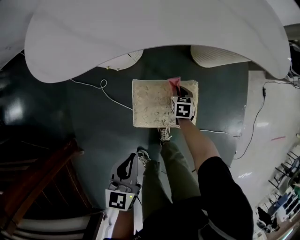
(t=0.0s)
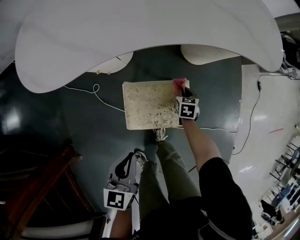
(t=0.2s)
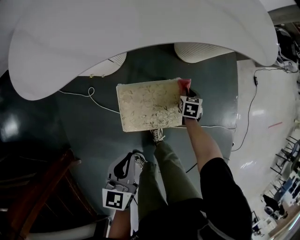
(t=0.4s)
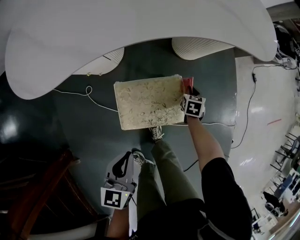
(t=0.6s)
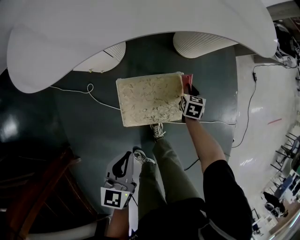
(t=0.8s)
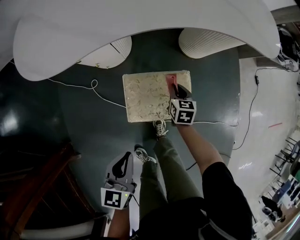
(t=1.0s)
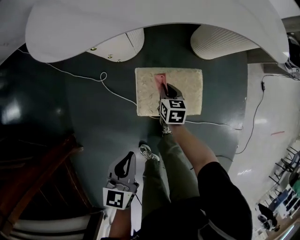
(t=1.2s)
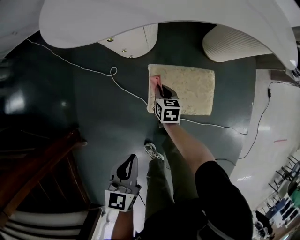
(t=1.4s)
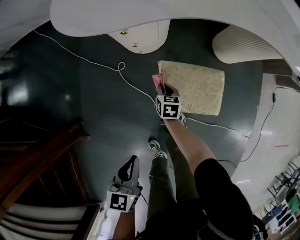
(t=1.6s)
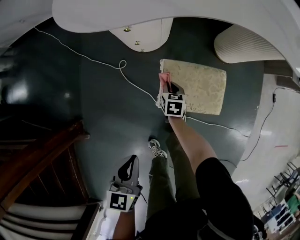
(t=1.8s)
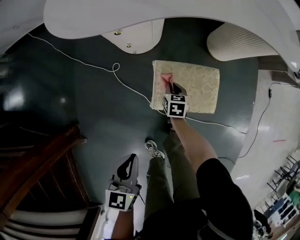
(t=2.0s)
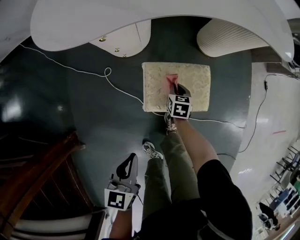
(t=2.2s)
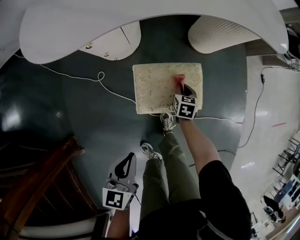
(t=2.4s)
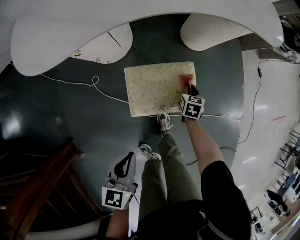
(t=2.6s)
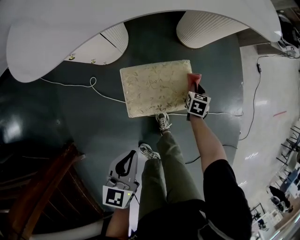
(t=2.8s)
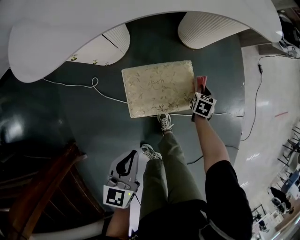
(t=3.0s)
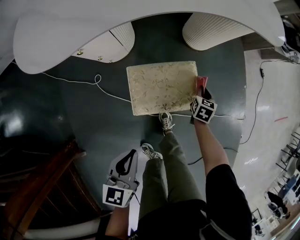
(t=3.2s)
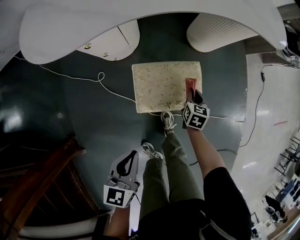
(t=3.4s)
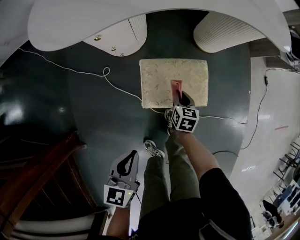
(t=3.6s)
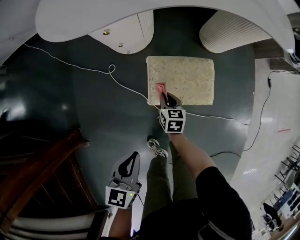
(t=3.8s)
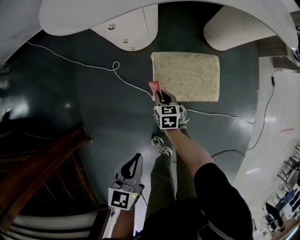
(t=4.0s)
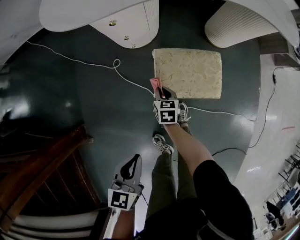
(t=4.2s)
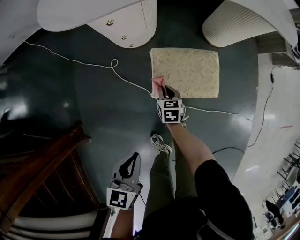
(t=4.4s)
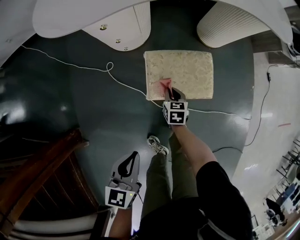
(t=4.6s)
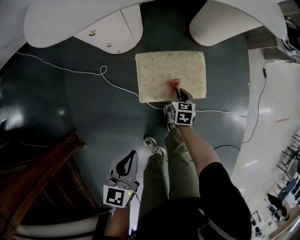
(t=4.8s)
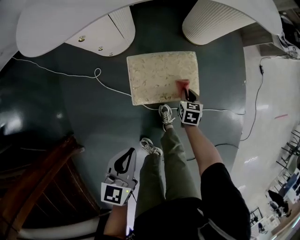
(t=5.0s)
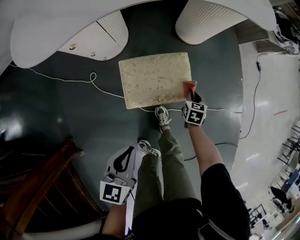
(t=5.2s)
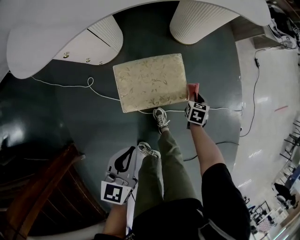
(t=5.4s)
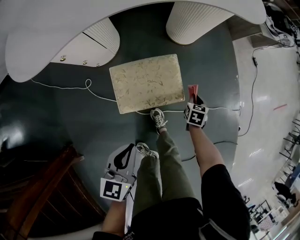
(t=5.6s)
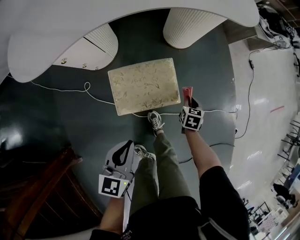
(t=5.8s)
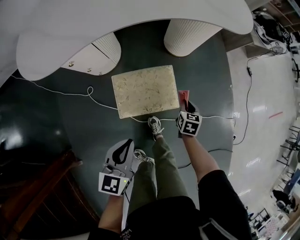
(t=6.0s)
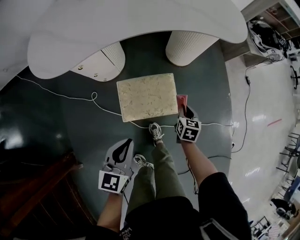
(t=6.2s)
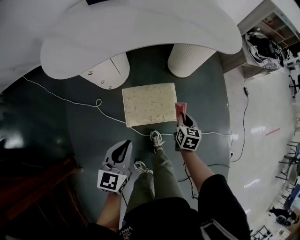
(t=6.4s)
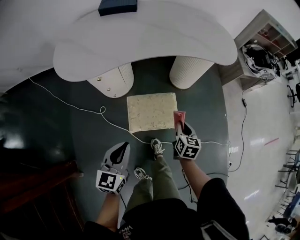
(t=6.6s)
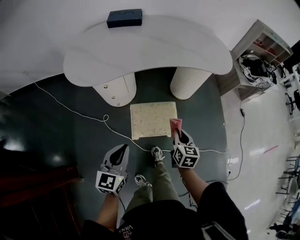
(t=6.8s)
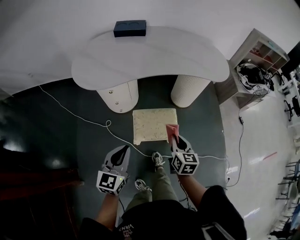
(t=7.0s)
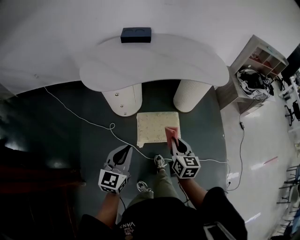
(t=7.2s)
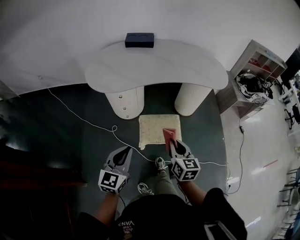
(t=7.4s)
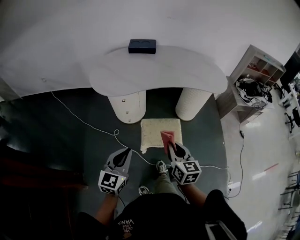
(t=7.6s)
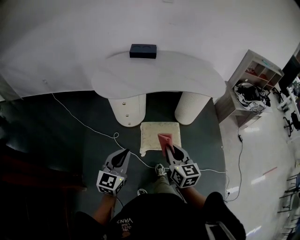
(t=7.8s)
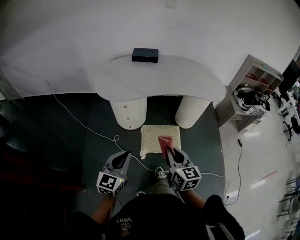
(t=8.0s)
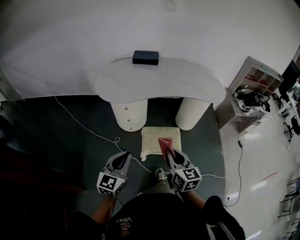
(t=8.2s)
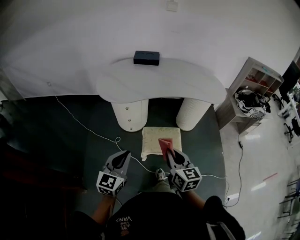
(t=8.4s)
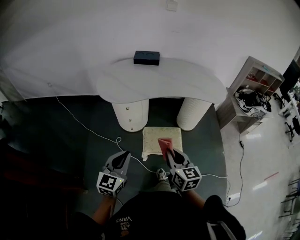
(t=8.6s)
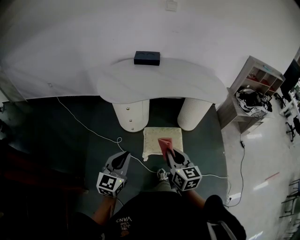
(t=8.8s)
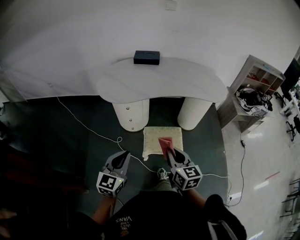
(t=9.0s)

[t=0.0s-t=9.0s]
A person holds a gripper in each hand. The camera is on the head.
t=0.0s to t=1.6s: The left gripper shifts by approximately 15 cm. The right gripper moves roughly 25 cm.
t=1.6s to t=3.0s: The left gripper moves approximately 10 cm; the right gripper moves approximately 40 cm, and rotates about 40 degrees.
t=3.0s to t=4.4s: The right gripper moves some 35 cm, and changes its angle by about 30 degrees, while the left gripper shifts by some 15 cm.
t=4.4s to t=6.0s: The left gripper moves approximately 20 cm; the right gripper changes place by approximately 35 cm, and swivels some 20 degrees.
t=6.0s to t=7.6s: The left gripper moves upward, backward and to the left, roughly 30 cm, and swivels some 20 degrees. The right gripper is displaced upward, backward and to the left by roughly 50 cm, and points its fingers about 30 degrees further upward.
t=7.6s to t=9.0s: The right gripper changes place by approximately 5 cm.

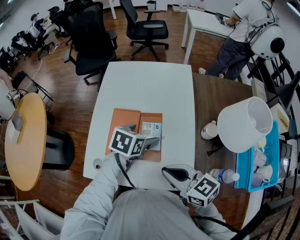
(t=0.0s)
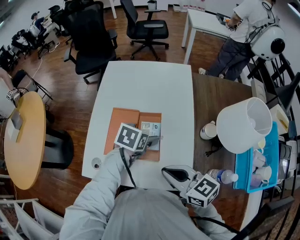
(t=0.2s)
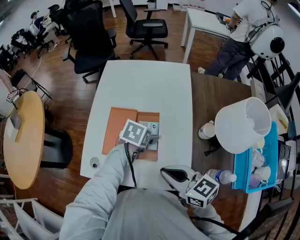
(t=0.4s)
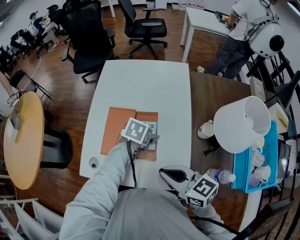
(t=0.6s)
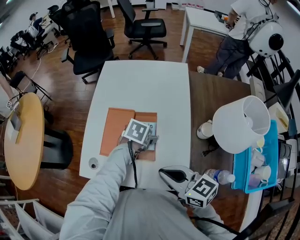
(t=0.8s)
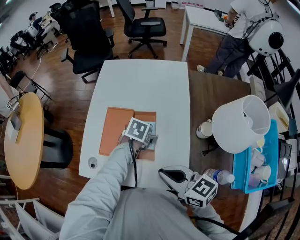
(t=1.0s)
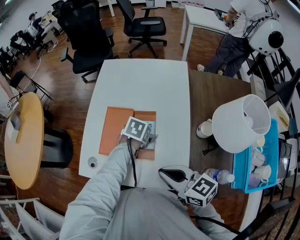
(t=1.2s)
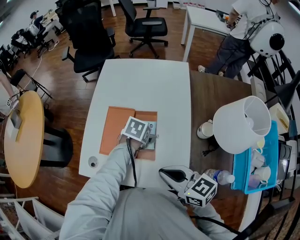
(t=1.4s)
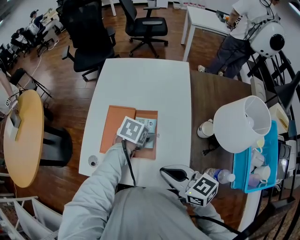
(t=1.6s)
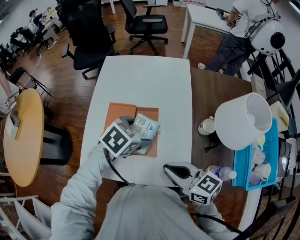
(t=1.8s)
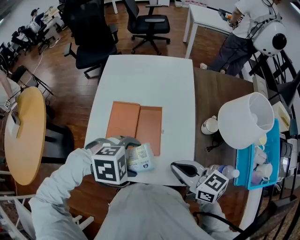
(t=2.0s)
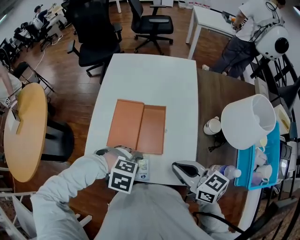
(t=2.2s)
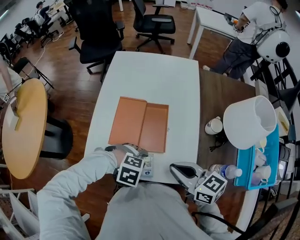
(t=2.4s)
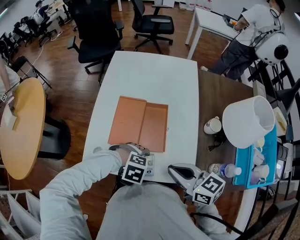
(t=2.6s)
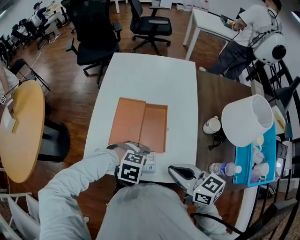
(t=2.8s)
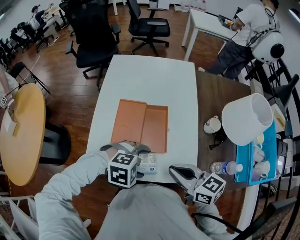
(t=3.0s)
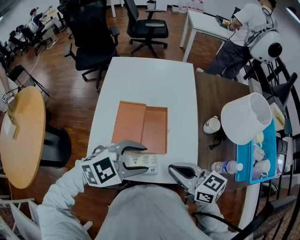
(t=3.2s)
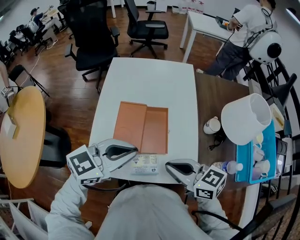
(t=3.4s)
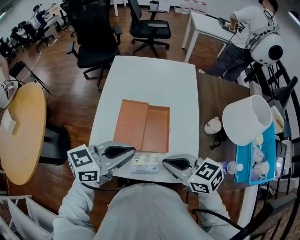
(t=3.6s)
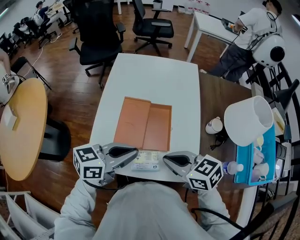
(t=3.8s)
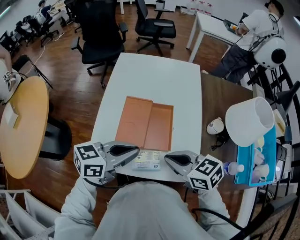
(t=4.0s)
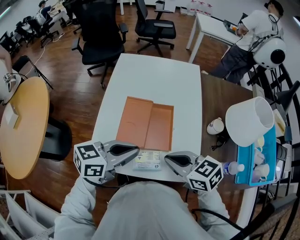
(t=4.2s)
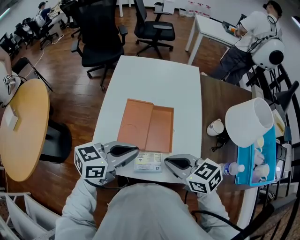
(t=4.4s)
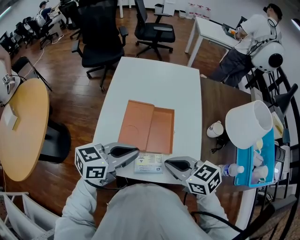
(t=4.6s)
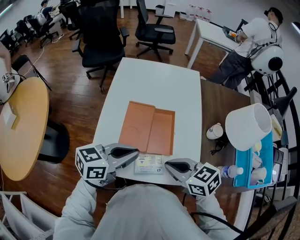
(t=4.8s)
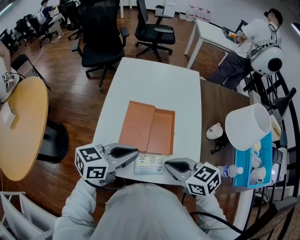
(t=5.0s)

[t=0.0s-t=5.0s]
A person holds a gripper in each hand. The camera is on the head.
t=0.0s to t=1.6s: The left gripper heads downward, covering some 5 cm.
t=1.6s to t=3.4s: The left gripper goes up and down, roughly 25 cm each way, reversing 2 times, tips its fingers upward by approximately 50 degrees, and closes. Meanwhile the right gripper shifts by some 5 cm.
t=3.4s to t=5.0s: The left gripper ends up approximately 5 cm from where it was, and swivels approximately 20 degrees.

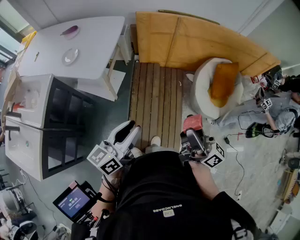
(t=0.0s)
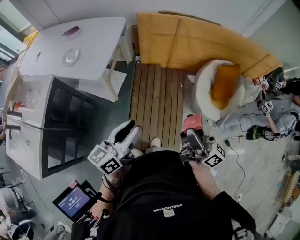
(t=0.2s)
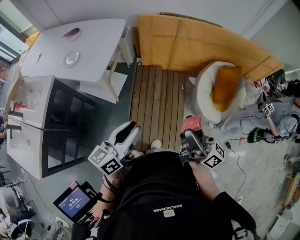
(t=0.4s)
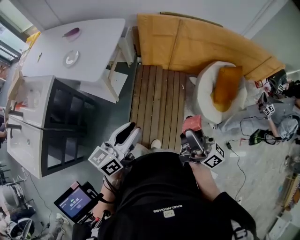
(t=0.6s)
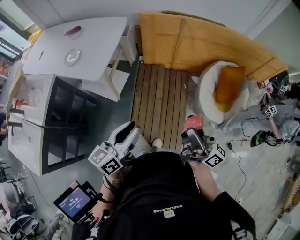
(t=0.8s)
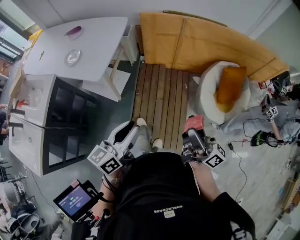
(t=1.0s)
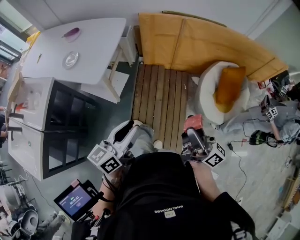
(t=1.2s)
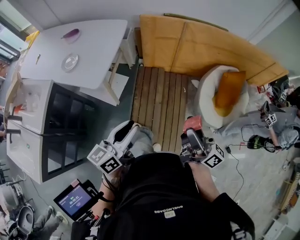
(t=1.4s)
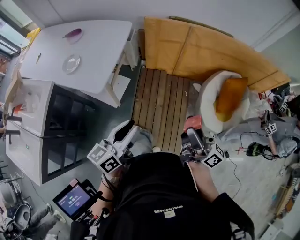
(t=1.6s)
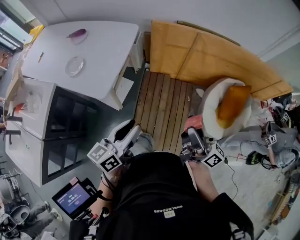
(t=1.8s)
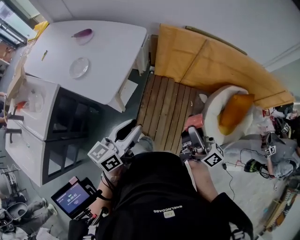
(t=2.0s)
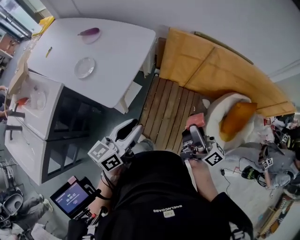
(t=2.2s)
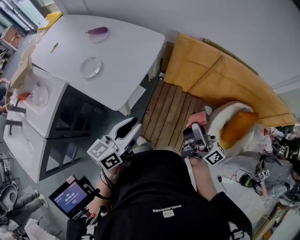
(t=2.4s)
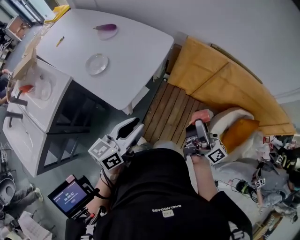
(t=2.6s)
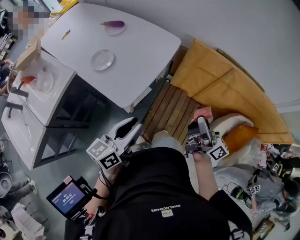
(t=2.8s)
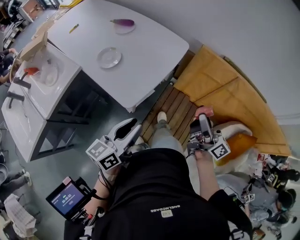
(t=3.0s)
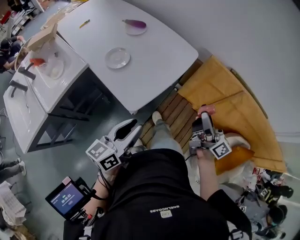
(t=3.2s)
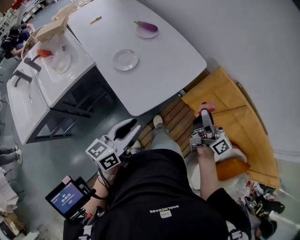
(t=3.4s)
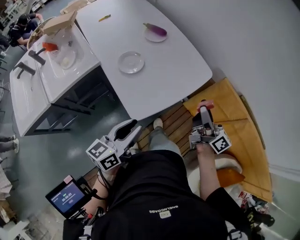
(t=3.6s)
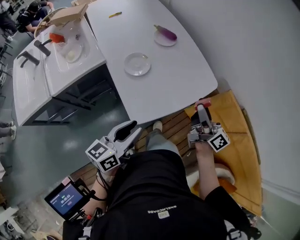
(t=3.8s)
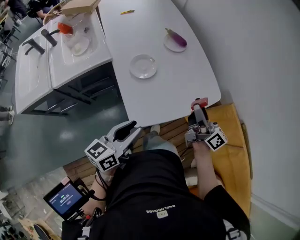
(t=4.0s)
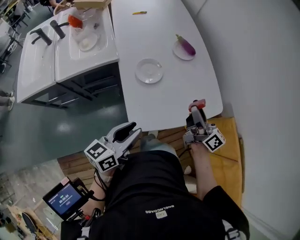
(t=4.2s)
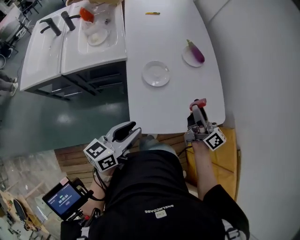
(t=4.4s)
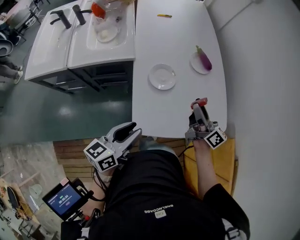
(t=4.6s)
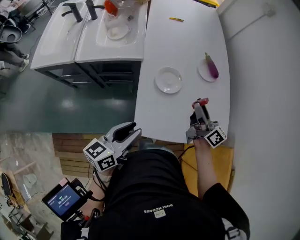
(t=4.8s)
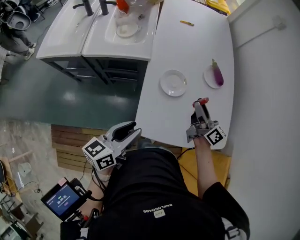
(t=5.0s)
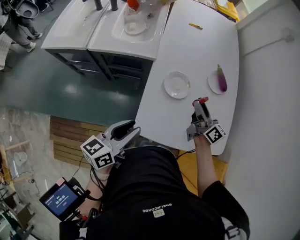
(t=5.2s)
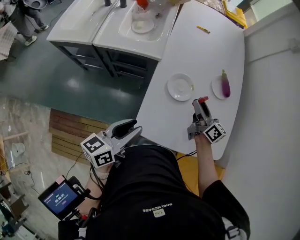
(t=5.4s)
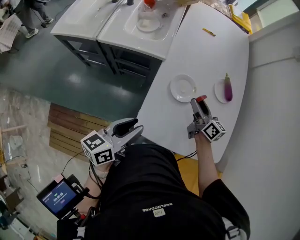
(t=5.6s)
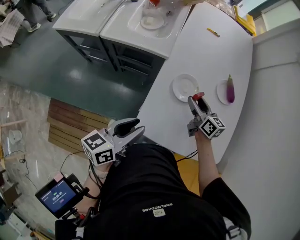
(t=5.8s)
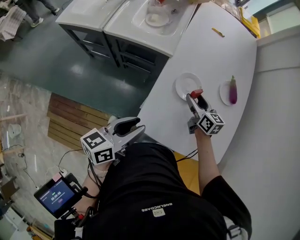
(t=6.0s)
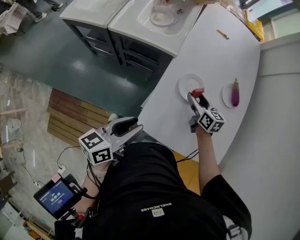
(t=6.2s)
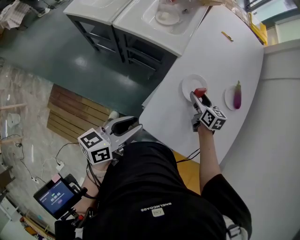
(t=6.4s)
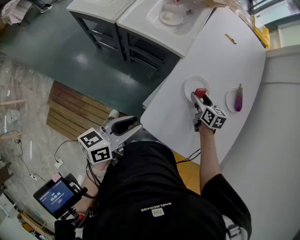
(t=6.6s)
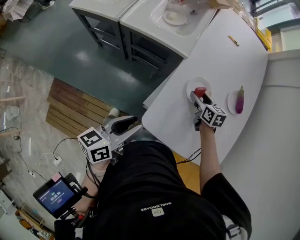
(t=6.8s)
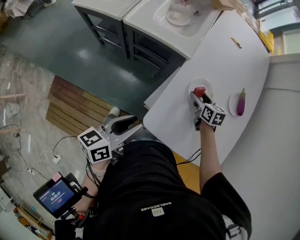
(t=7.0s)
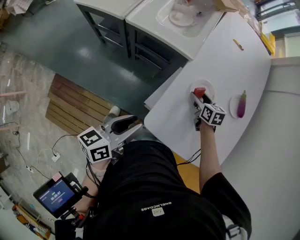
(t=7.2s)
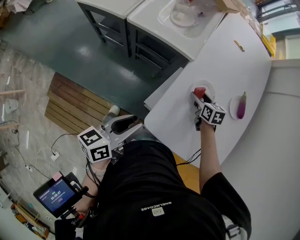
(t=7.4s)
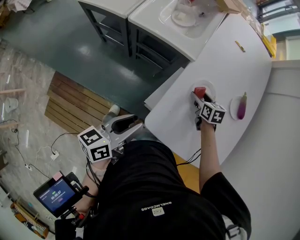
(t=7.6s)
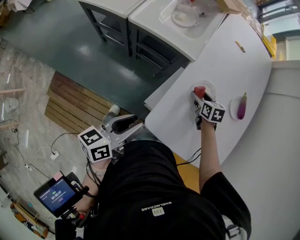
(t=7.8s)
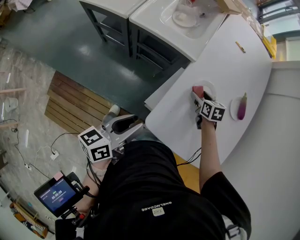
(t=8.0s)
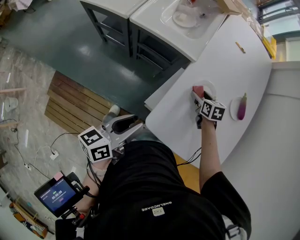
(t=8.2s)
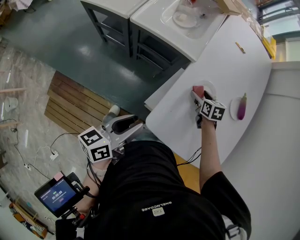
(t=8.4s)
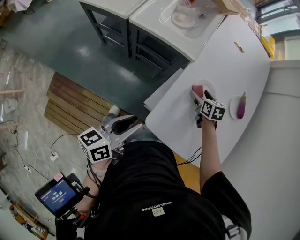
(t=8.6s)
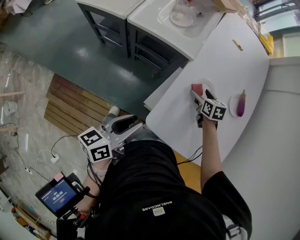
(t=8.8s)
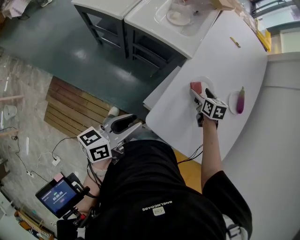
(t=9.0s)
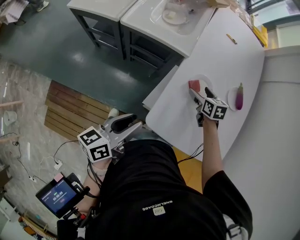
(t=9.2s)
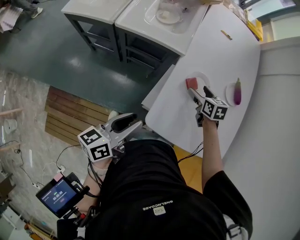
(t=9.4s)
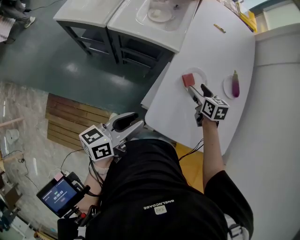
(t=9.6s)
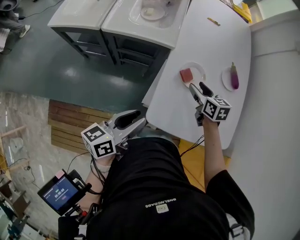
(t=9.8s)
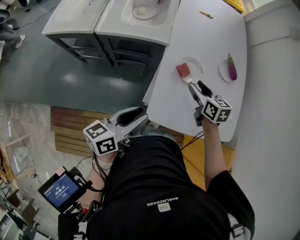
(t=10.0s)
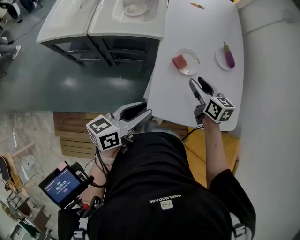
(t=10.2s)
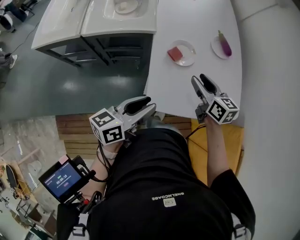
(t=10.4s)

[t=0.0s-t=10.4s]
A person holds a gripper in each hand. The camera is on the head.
t=0.0s to t=1.4s: Both grippers travel together forward, some 10 cm.
t=1.4s to t=3.0s: The two grippers go approximately 30 cm forward and to the left. The left gripper rotates approximately 20 degrees.
t=3.0s to t=4.4s: The left gripper changes place by approximately 15 cm, and turns by approximately 40 degrees; the right gripper changes place by approximately 35 cm, and turns by roughly 40 degrees.
t=4.4s to t=6.0s: The left gripper turns by approximately 20 degrees. Meanwhile the right gripper changes place by about 20 cm, and rotates some 50 degrees.
t=6.0s to t=7.4s: The right gripper goes about 10 cm downward, and changes its angle by about 30 degrees. Meanwhile the left gripper is displaced to the left by roughly 5 cm.
t=7.4s to t=9.0s: The grippers make only small movements.
t=9.0s to t=10.4s: The left gripper shifts approximately 5 cm to the right, and rotates about 30 degrees; the right gripper is displaced upward and backward by roughly 20 cm, swivels approximately 30 degrees, and closes up.
